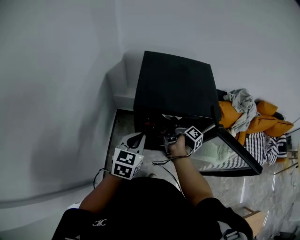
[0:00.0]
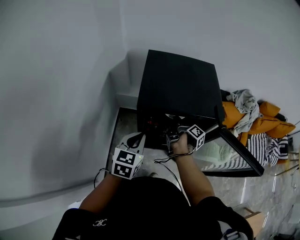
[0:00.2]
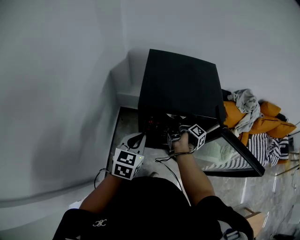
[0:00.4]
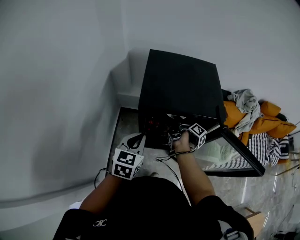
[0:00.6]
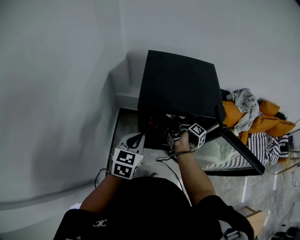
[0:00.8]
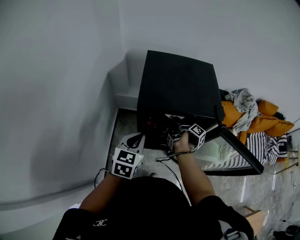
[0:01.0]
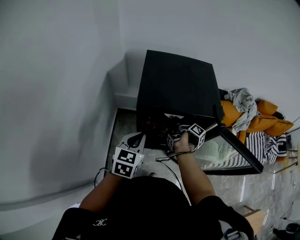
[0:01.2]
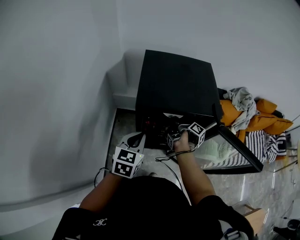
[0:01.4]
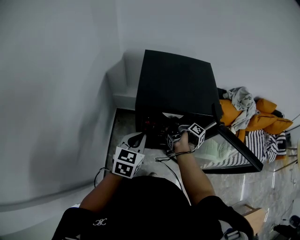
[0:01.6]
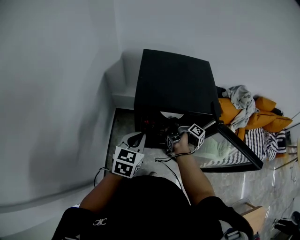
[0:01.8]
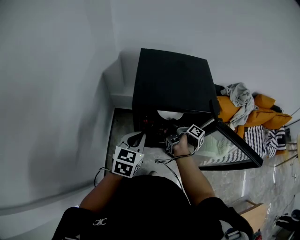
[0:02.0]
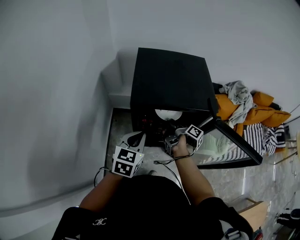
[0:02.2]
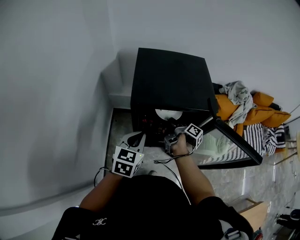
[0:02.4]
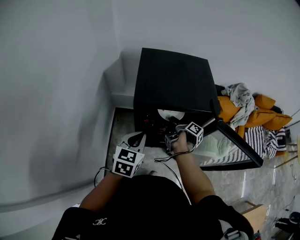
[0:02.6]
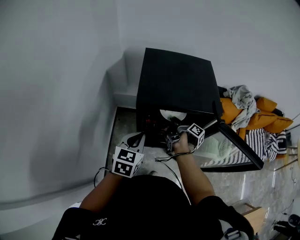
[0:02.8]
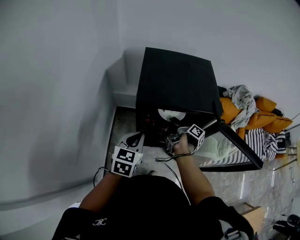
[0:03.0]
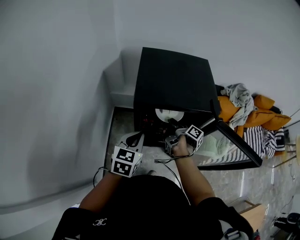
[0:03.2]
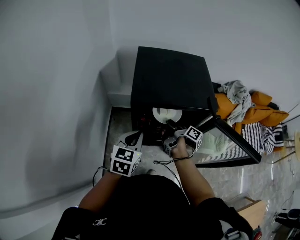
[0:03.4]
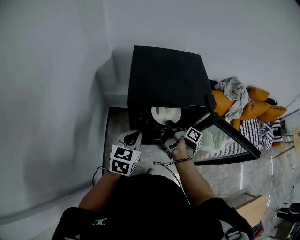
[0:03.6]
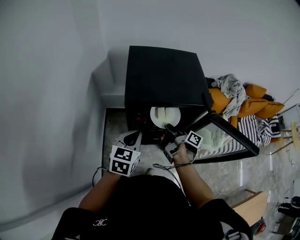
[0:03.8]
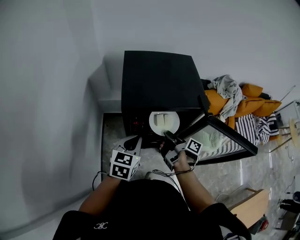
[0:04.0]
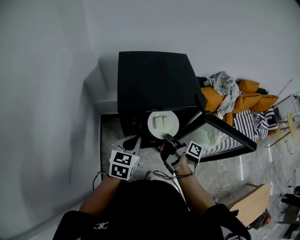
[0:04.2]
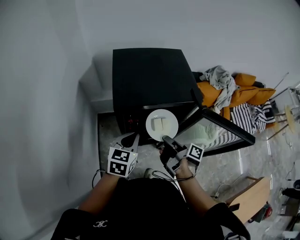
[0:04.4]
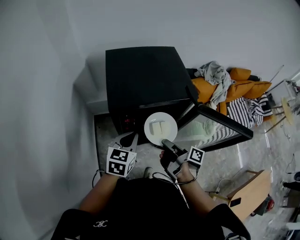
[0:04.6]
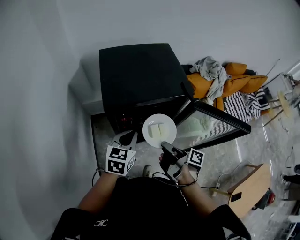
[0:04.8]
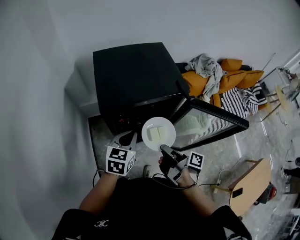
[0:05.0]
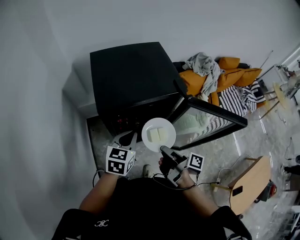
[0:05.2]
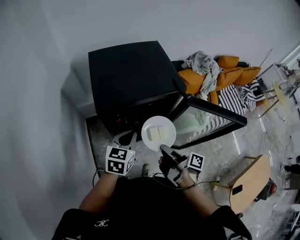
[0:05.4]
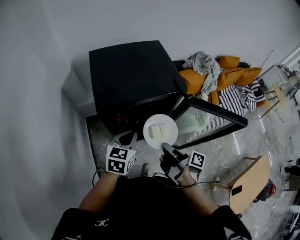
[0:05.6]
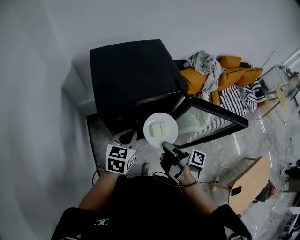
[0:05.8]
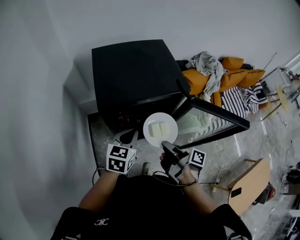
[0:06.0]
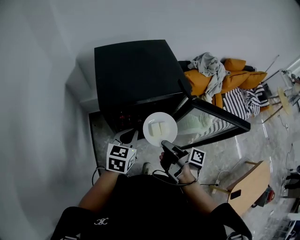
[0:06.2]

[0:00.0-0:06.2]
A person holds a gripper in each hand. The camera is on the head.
0.0 to 3.2 s: There are only small adjustments of the grippers.
3.2 to 4.6 s: The right gripper goes about 15 cm backward.
4.6 to 6.2 s: The grippers make only small movements.

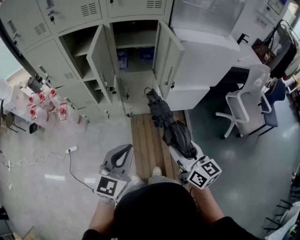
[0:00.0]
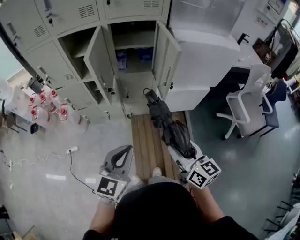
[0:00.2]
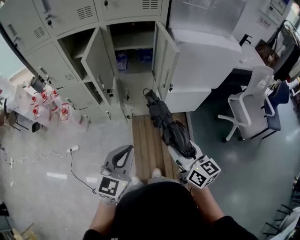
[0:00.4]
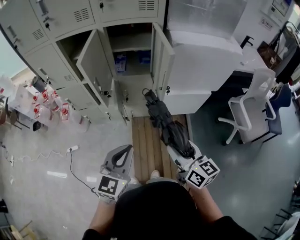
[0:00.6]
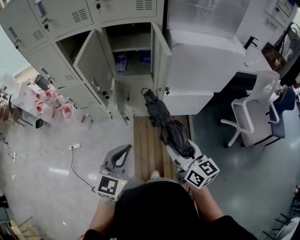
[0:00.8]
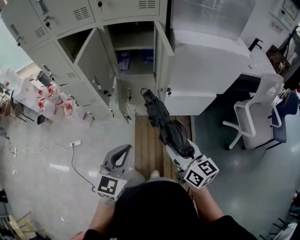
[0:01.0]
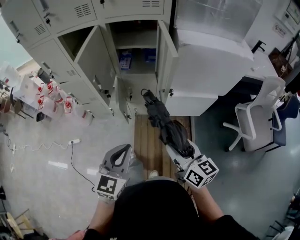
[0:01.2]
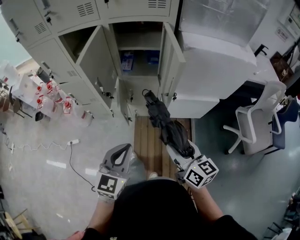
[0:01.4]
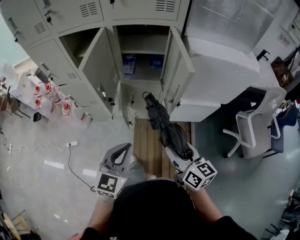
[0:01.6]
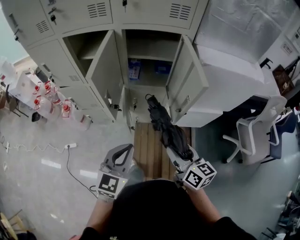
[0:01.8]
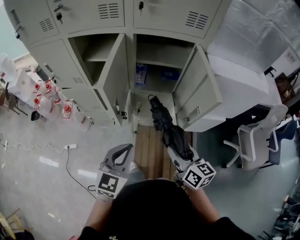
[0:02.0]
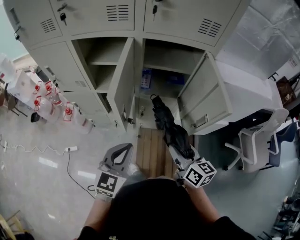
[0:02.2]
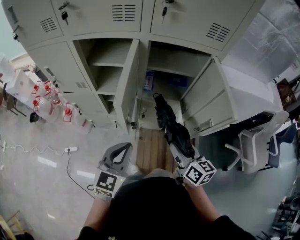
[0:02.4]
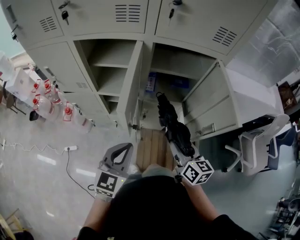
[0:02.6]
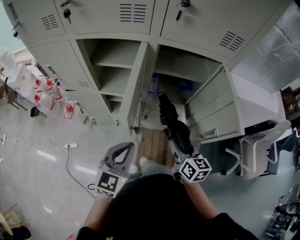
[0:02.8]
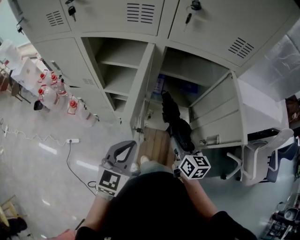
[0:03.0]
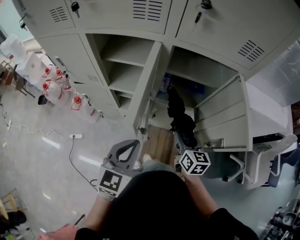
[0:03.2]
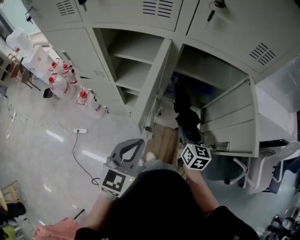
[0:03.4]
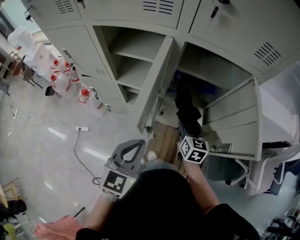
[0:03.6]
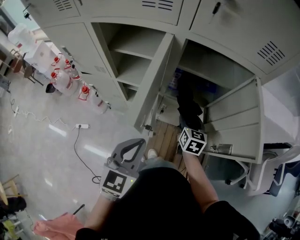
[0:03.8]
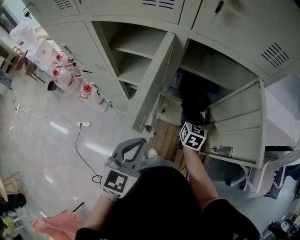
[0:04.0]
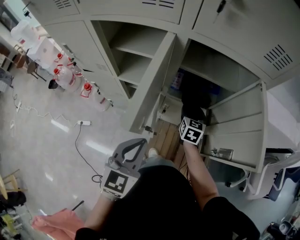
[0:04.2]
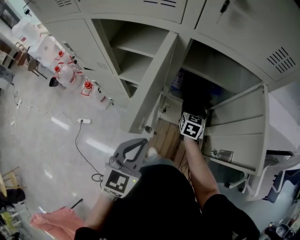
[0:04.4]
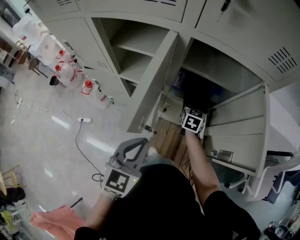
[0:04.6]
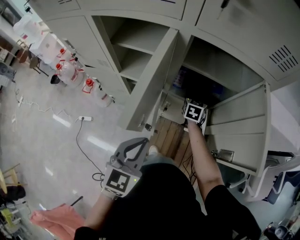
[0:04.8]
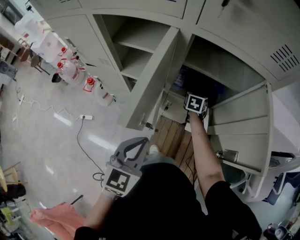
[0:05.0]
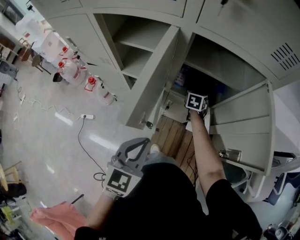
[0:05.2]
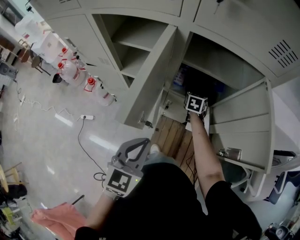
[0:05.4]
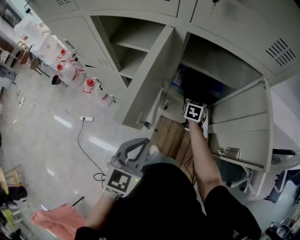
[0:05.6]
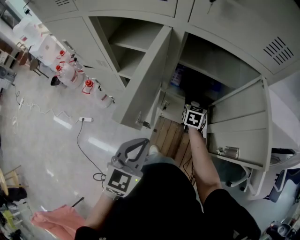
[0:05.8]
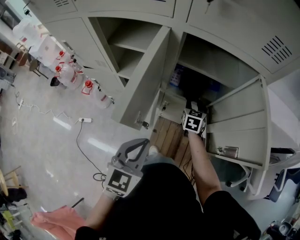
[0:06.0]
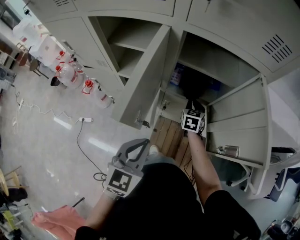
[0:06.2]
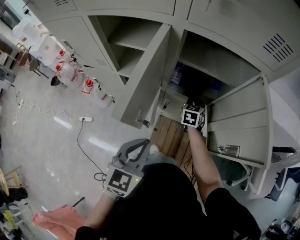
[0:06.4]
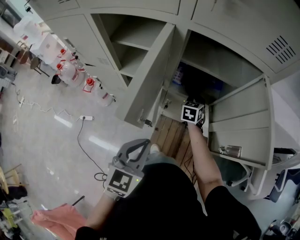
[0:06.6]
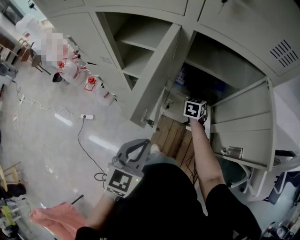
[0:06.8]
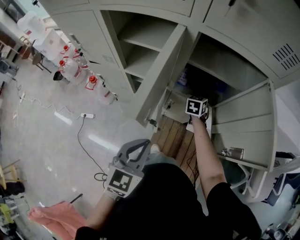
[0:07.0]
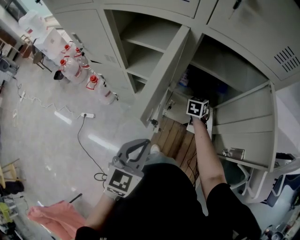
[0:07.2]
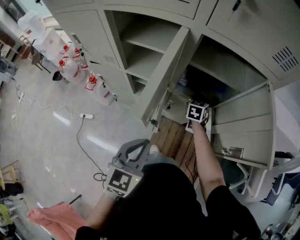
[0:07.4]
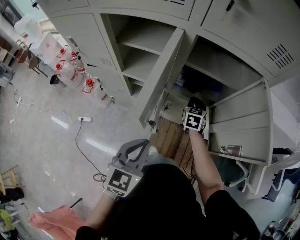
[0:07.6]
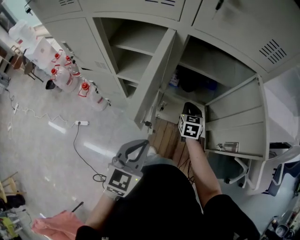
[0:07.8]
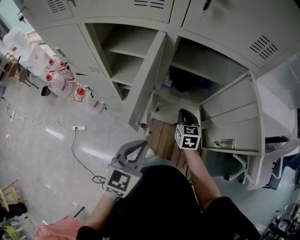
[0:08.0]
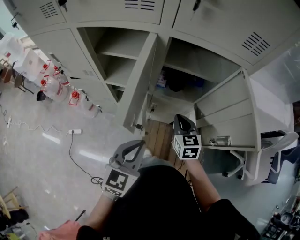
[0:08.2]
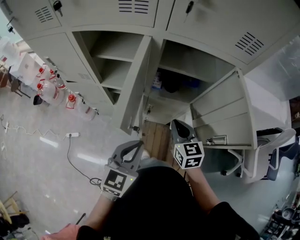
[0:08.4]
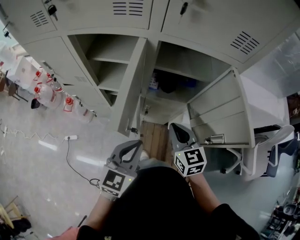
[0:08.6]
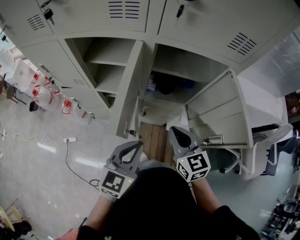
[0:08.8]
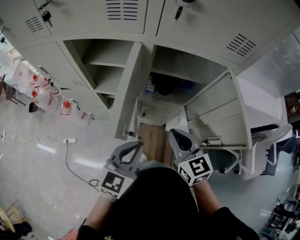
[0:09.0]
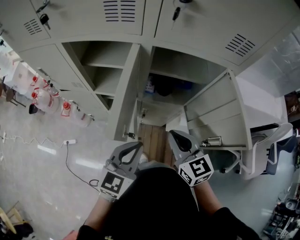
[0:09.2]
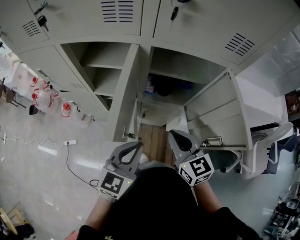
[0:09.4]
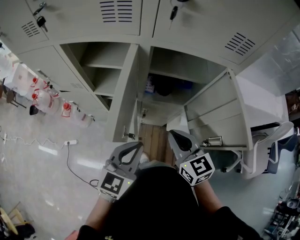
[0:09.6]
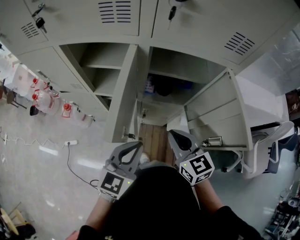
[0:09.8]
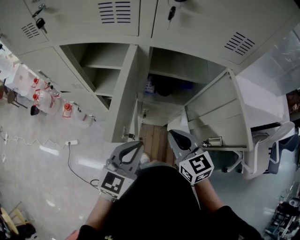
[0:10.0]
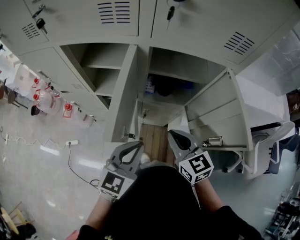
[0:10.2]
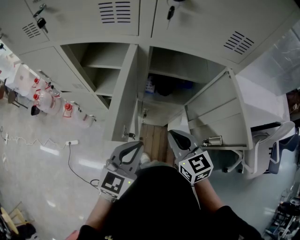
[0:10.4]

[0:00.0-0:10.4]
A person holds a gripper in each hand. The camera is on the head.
0.0 to 1.4 s: The two grippers go some 10 cm forward and to the right.
1.4 to 3.0 s: The two grippers go approximately 25 cm forward and to the left.
3.0 to 4.4 s: The right gripper shifts roughly 20 cm forward and downward, and swivels about 20 degrees.
4.4 to 6.0 s: The right gripper goes forward and returns, roughly 10 cm each way.
6.0 to 7.4 s: The right gripper closes.
7.4 to 9.0 s: The right gripper travels backward and upward by some 30 cm, and turns by roughly 30 degrees. The left gripper ends up roughly 5 cm from where it was.
9.0 to 10.4 s: The grippers make only small movements.

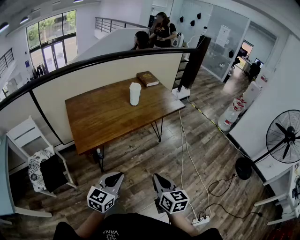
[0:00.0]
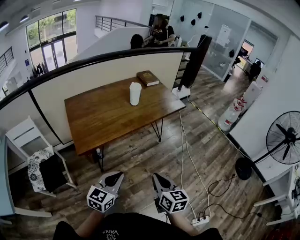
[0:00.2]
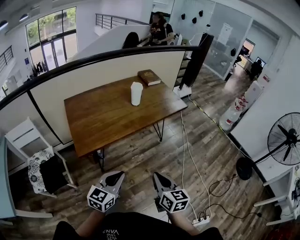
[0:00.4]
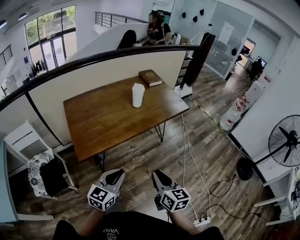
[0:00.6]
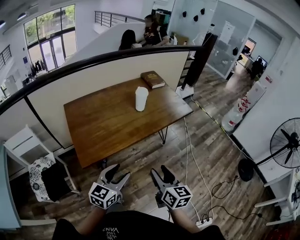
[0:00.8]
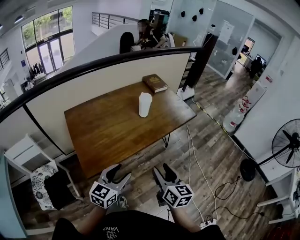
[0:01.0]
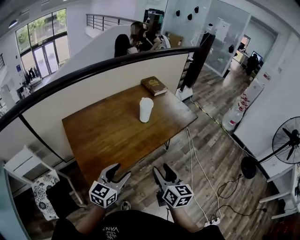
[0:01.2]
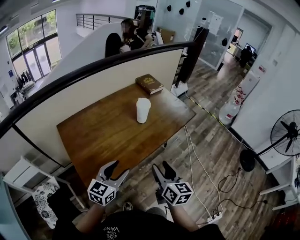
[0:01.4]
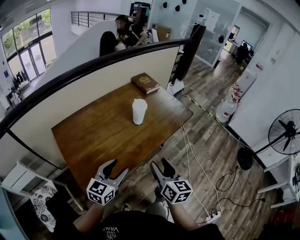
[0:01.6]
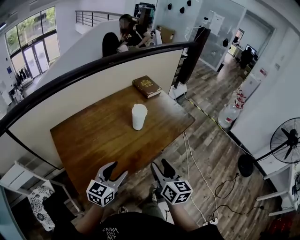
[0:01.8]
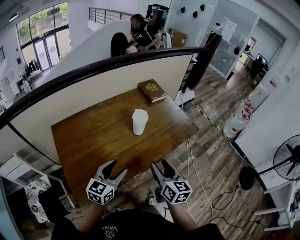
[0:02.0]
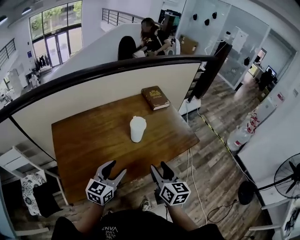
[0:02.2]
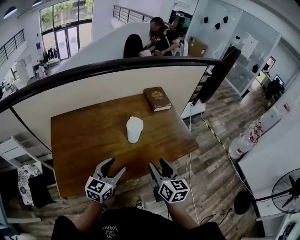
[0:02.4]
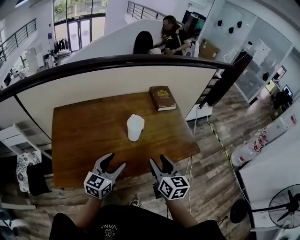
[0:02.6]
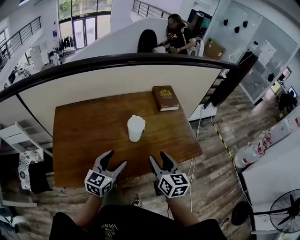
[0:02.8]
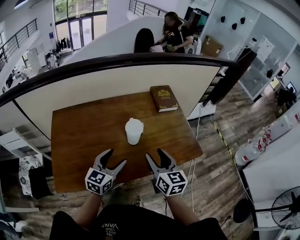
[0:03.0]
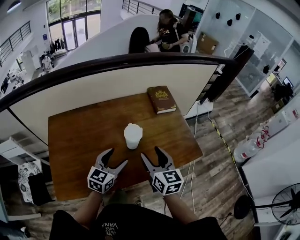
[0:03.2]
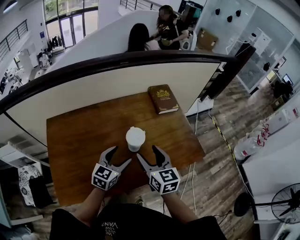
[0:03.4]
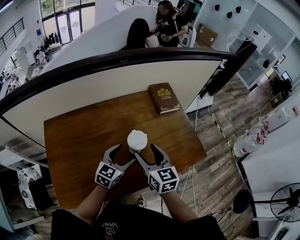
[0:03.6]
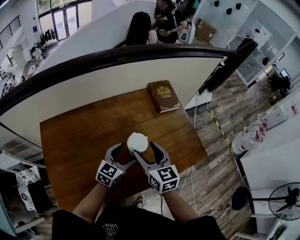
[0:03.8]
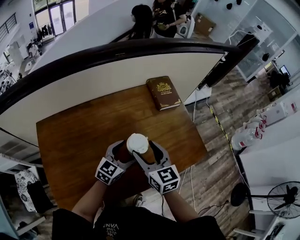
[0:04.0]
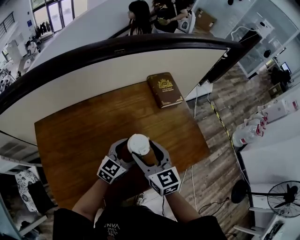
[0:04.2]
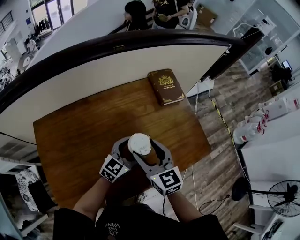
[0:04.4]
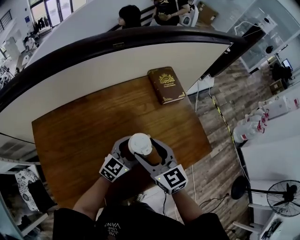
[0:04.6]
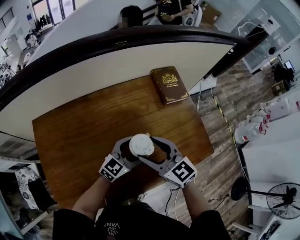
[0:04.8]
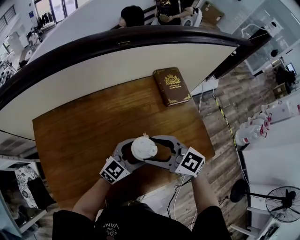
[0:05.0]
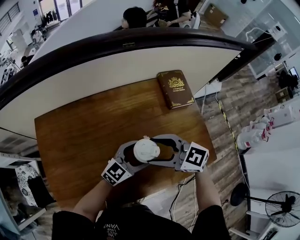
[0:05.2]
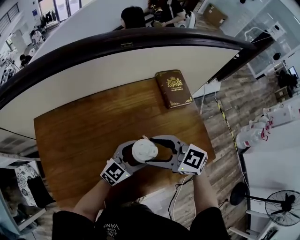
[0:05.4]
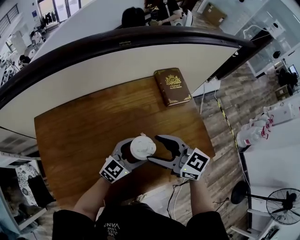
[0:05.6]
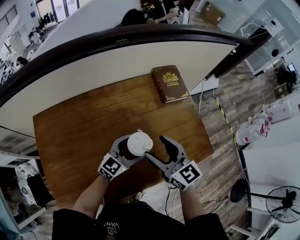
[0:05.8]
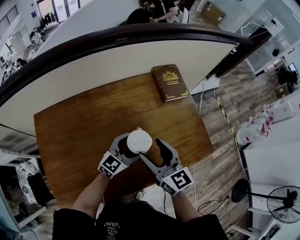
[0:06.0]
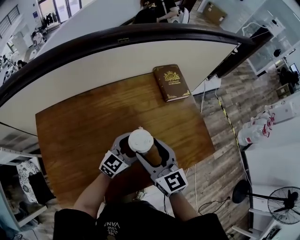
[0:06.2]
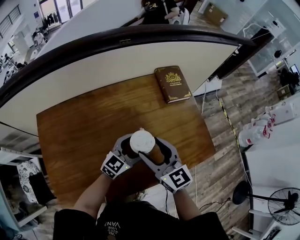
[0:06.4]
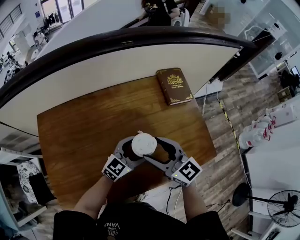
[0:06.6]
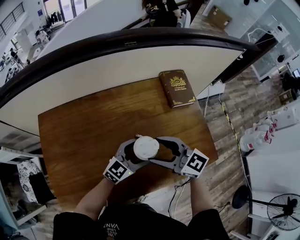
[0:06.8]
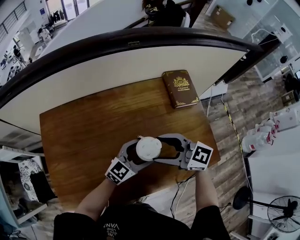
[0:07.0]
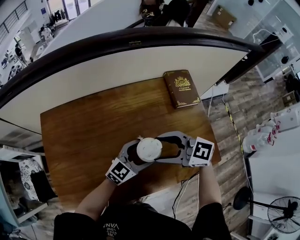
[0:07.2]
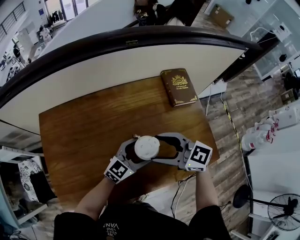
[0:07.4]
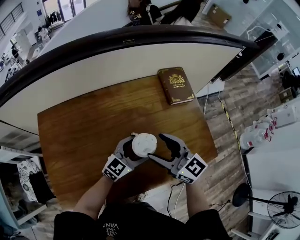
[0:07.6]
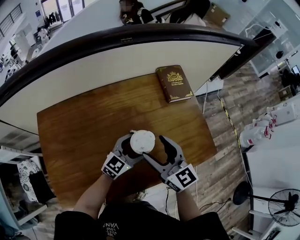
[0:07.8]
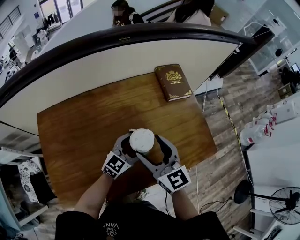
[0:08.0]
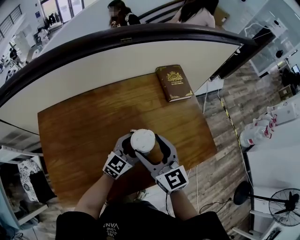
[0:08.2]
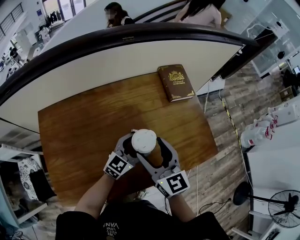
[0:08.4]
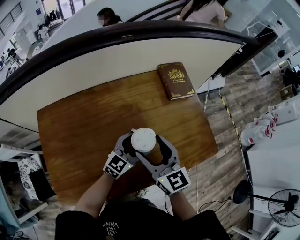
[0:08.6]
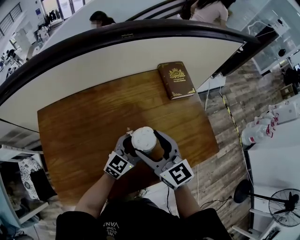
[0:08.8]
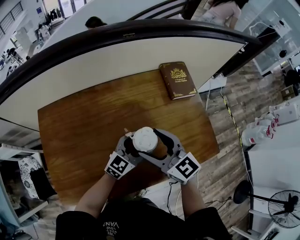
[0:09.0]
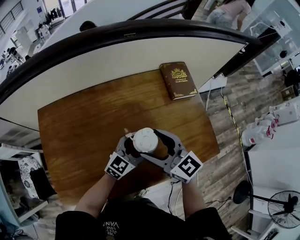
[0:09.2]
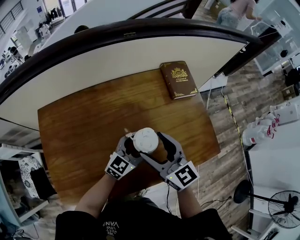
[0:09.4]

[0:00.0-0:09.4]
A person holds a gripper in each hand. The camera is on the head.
0.0 to 1.6 s: The grippers both shift forward and to the left by some 30 cm. The right gripper opens; the left gripper opens its fingers.
1.6 to 3.2 s: The left gripper changes place by roughly 25 cm, and swivels some 20 degrees. Meanwhile the right gripper changes place by roughly 25 cm, and rotates some 30 degrees.
3.2 to 4.8 s: The left gripper shifts about 15 cm forward, downward and to the right, and rotates approximately 30 degrees, while the right gripper moves forward and to the left, roughly 10 cm, and swivels roughly 30 degrees.
7.8 to 9.4 s: The grippers stay close to where they were, moving slightly.
